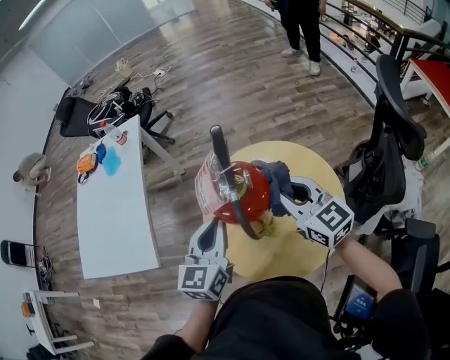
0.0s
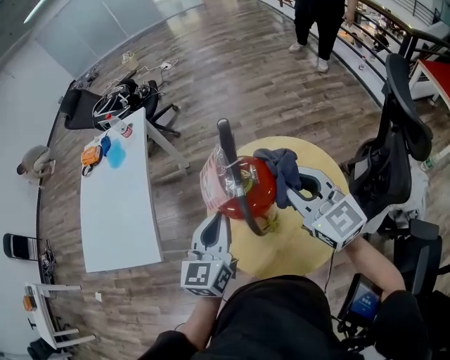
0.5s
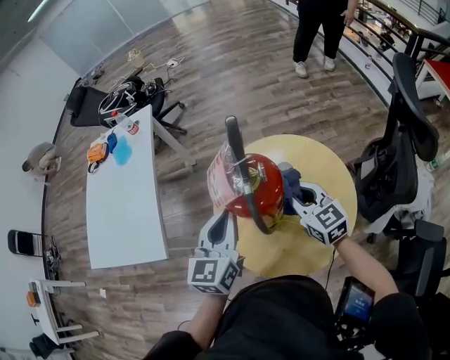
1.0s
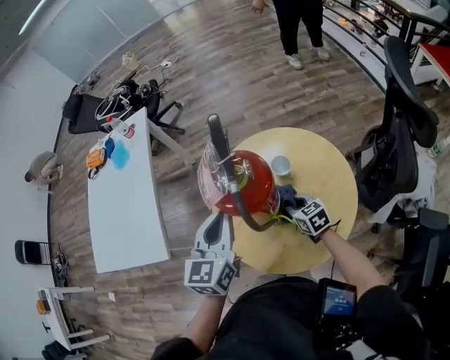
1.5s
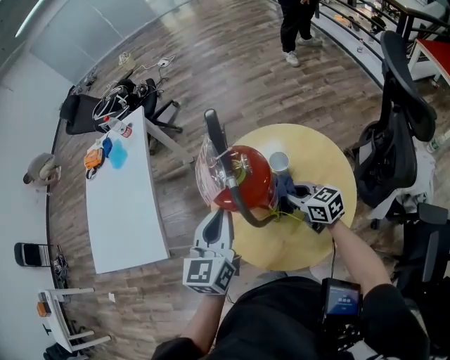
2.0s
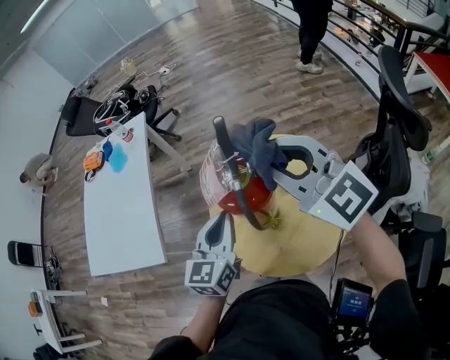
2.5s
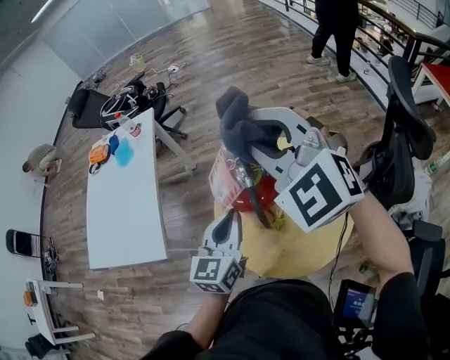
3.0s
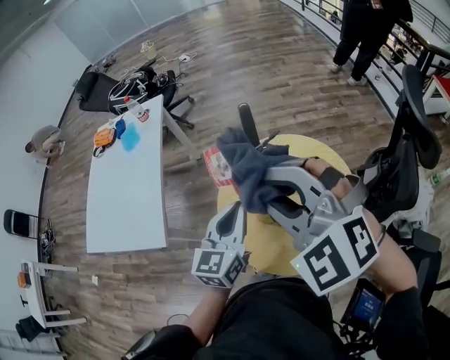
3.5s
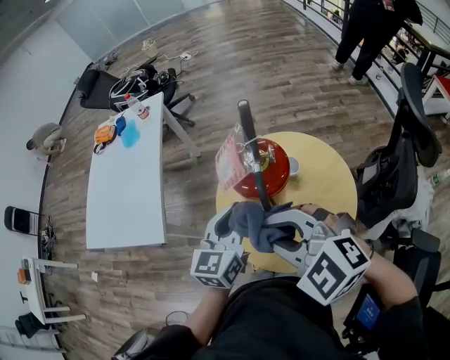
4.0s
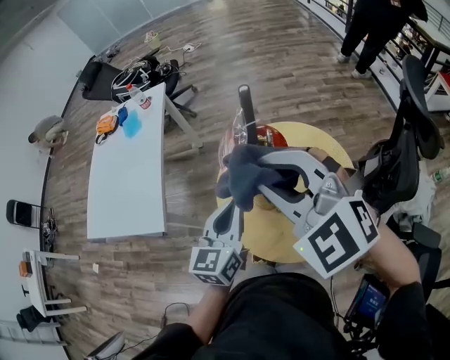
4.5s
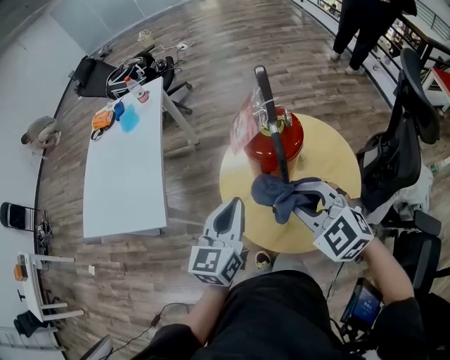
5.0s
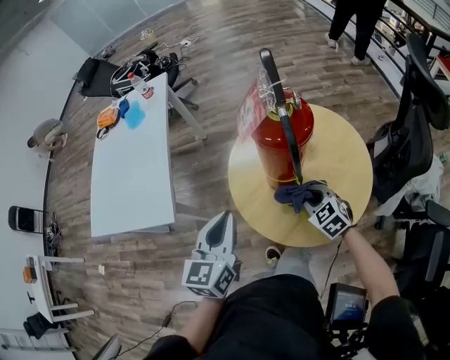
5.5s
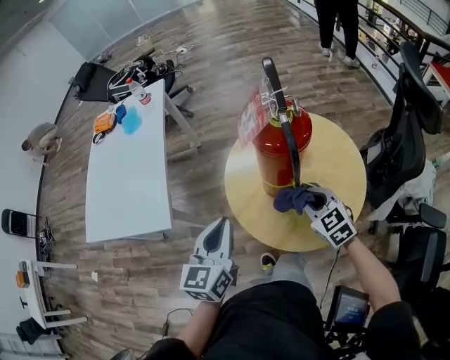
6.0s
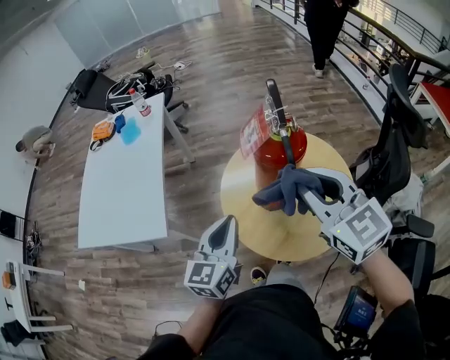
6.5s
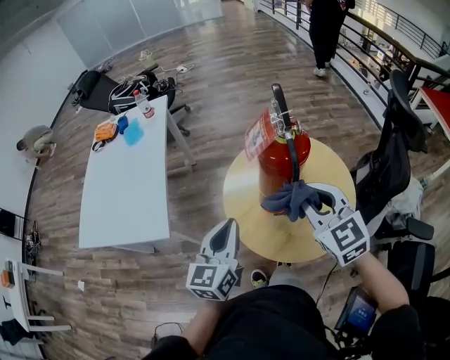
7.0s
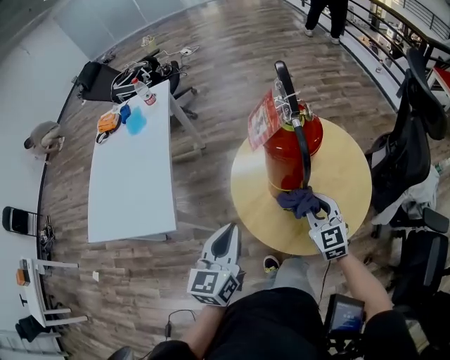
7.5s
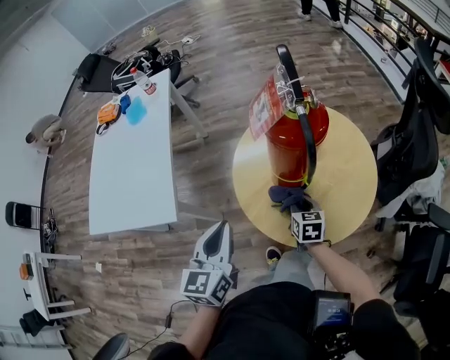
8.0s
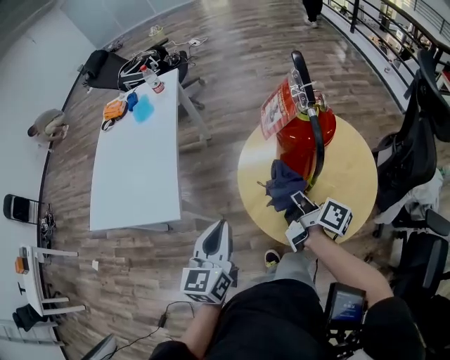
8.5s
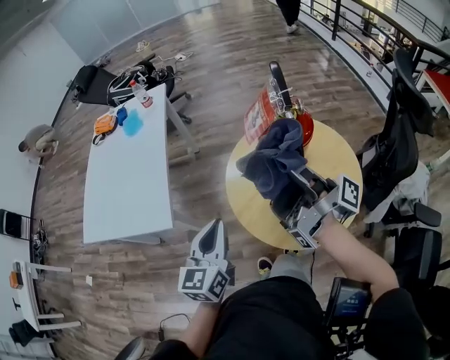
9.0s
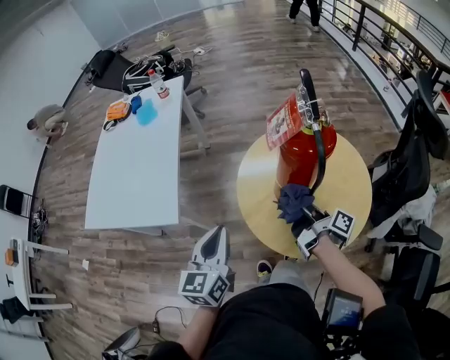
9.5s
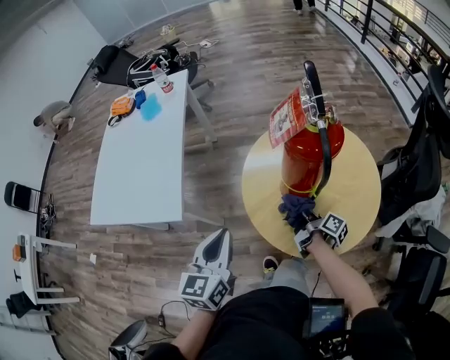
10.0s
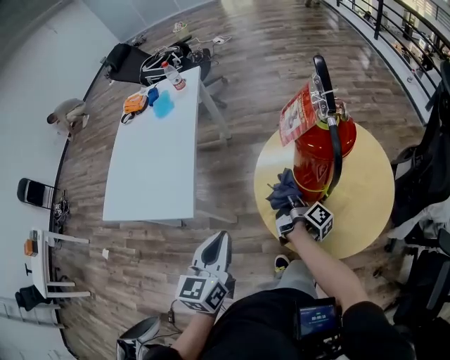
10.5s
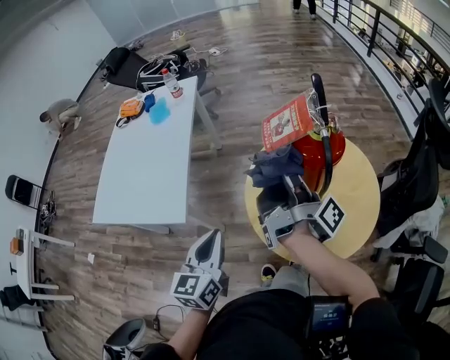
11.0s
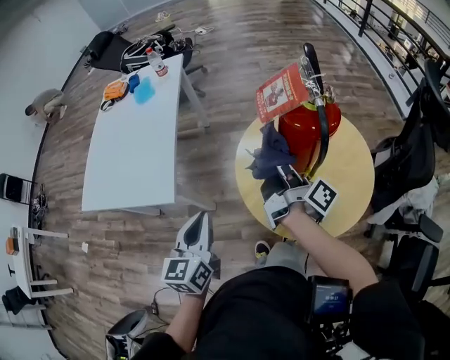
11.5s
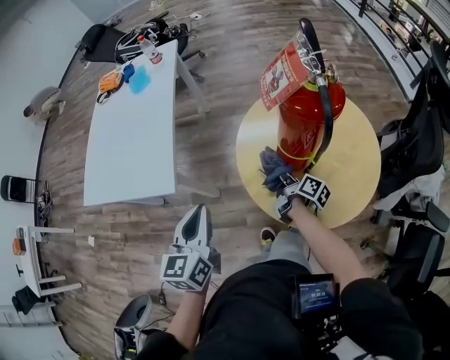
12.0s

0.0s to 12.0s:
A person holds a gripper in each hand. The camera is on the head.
0.0s to 2.0s: The right gripper goes up and down, about 30 cm each way, reversing 2 times, and rotates roughly 20 degrees.
2.0s to 4.0s: The right gripper moves upward, to the left and backward, about 30 cm, and rolls counterclockwise, seen from behind, by roughly 60 degrees.
4.0s to 6.0s: The right gripper moves up and down over approximately 40 cm, changing direction 2 times, and swivels roughly 40 degrees; the left gripper travels to the left and backward by about 15 cm.
6.0s to 8.0s: The right gripper goes upward and returns, some 25 cm each way, and turns by roughly 40 degrees.
8.0s to 10.0s: The right gripper goes upward and returns, about 35 cm each way, and rotates around the line of its fingers by approximately 70 degrees, clockwise from behind.
10.0s to 12.0s: The right gripper goes some 5 cm to the left, and travels upward and back again, about 30 cm each way.

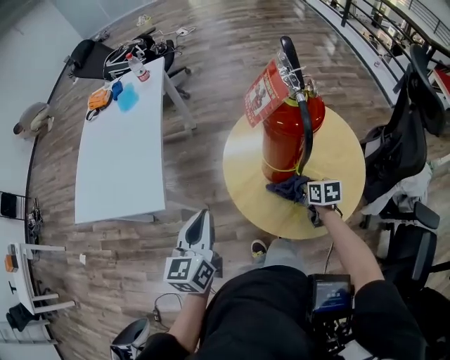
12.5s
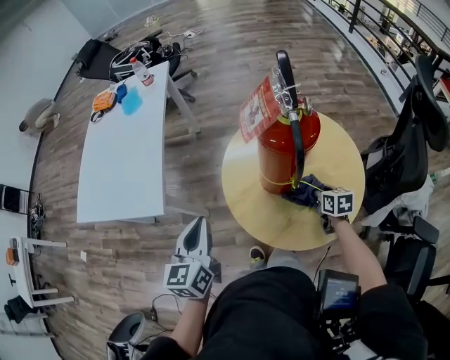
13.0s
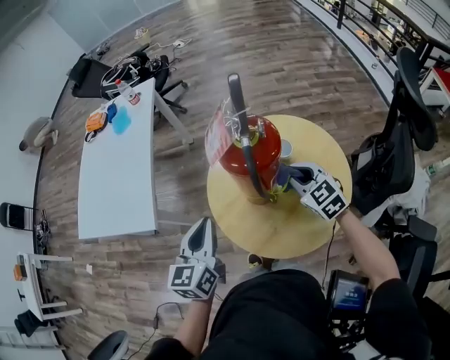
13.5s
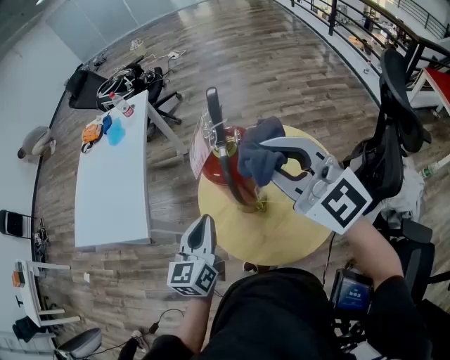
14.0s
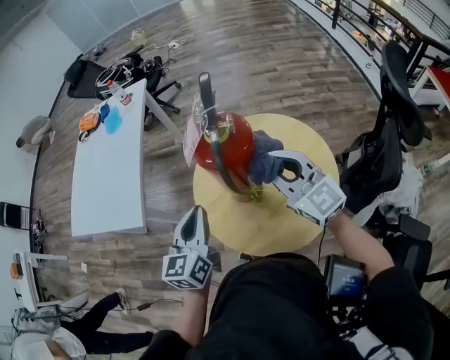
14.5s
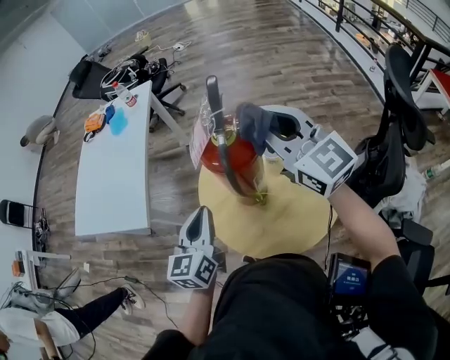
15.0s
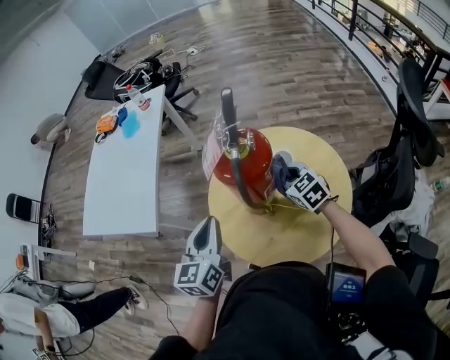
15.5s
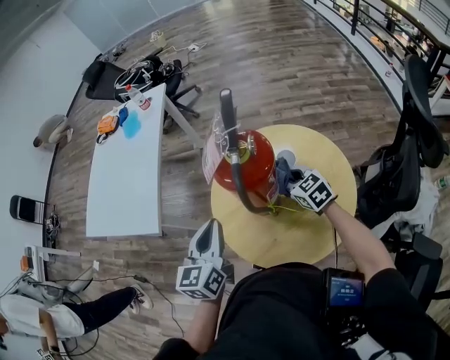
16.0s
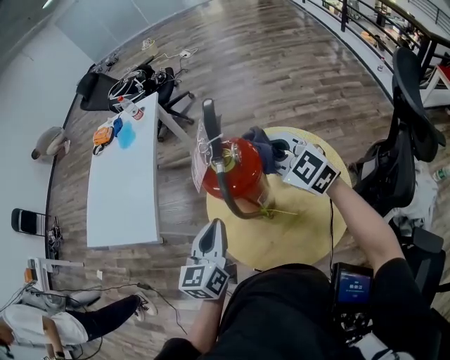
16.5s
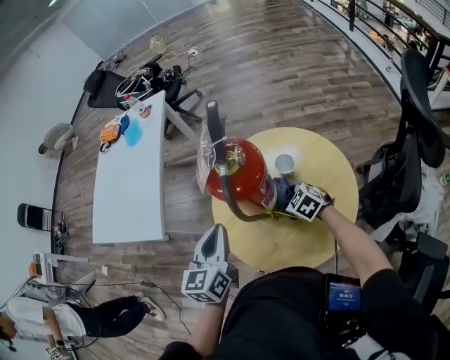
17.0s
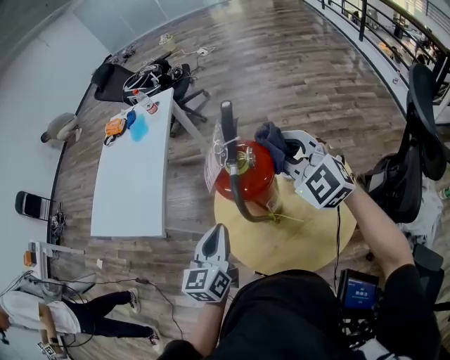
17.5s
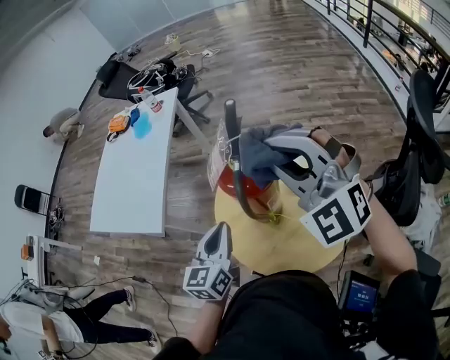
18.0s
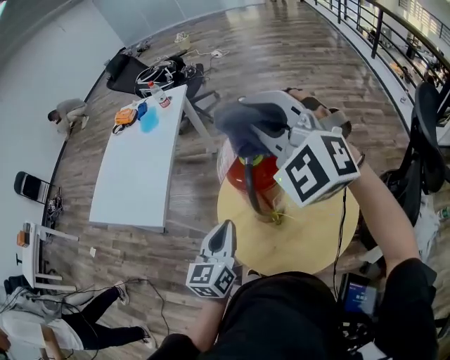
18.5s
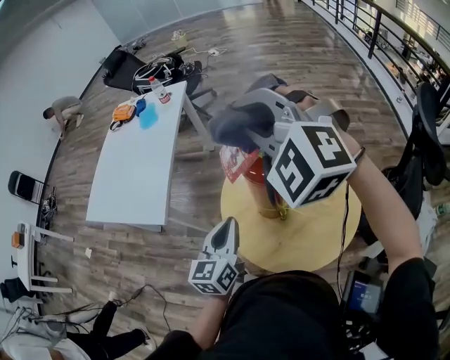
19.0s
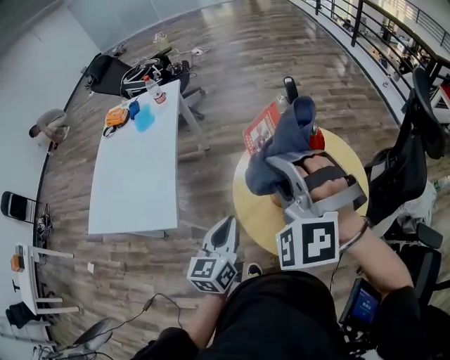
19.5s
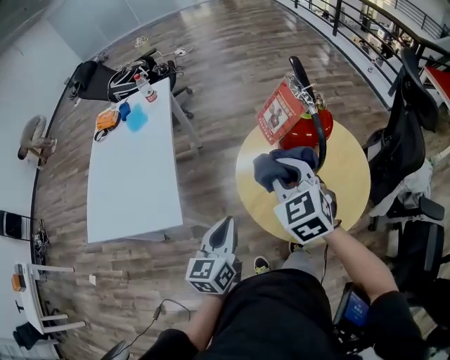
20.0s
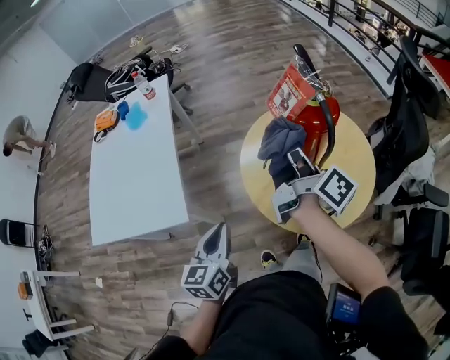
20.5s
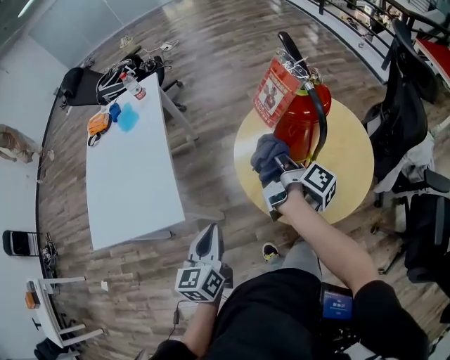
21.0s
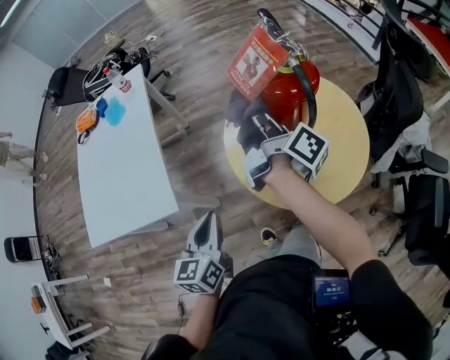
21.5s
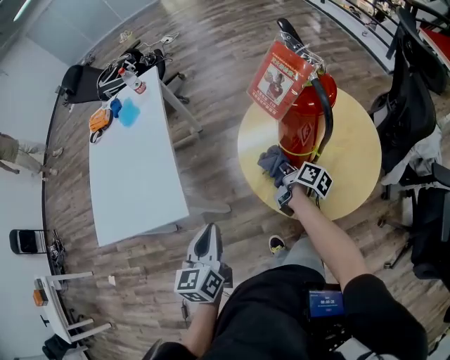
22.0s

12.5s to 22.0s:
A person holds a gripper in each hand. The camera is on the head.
12.5s to 14.5s: The left gripper shifts about 15 cm to the right. The right gripper heads upward, covering roughly 30 cm, and tips its fingers upward by roughly 50 degrees.
14.5s to 16.5s: The right gripper moves up and down over approximately 30 cm, changing direction 2 times, and swivels about 20 degrees.
16.5s to 18.0s: The right gripper shifts approximately 15 cm upward and backward, and swivels about 40 degrees.
18.0s to 20.0s: The left gripper heads to the left, covering some 15 cm. The right gripper heads downward and to the left, covering some 20 cm, and turns by roughly 50 degrees.
20.0s to 22.0s: The right gripper moves up and down over some 30 cm, changing direction 2 times, and twists about 100 degrees clockwise, seen from behind; the left gripper heads to the left, covering roughly 10 cm.

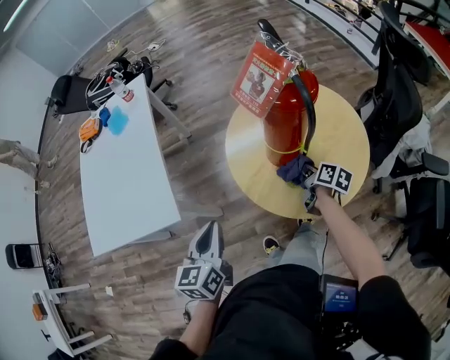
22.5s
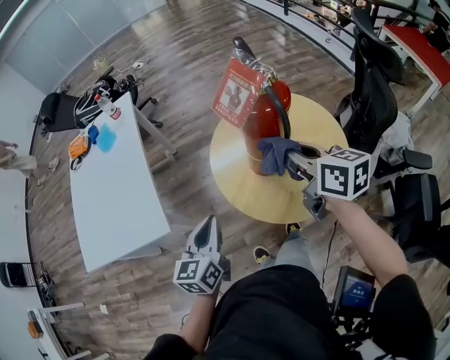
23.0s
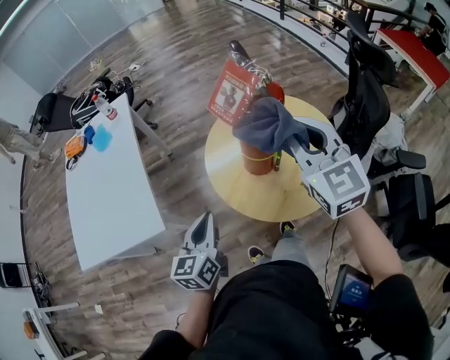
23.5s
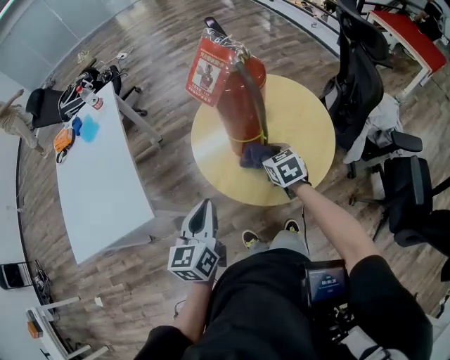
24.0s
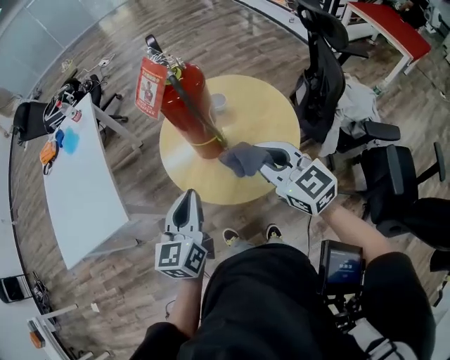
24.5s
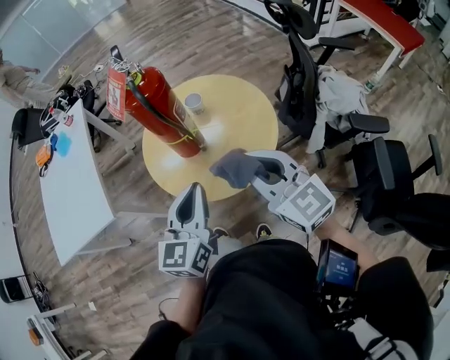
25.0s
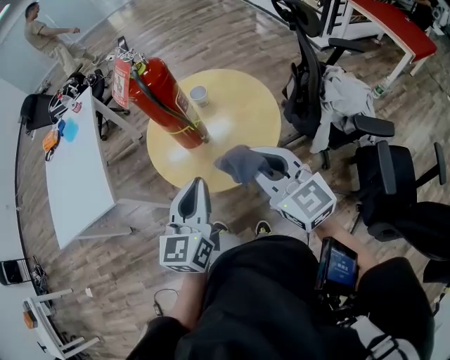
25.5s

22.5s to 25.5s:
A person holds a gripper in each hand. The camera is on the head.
22.5s to 24.0s: The left gripper is displaced to the right by roughly 10 cm, while the right gripper moves approximately 35 cm upward and comes back, and rotates around the line of its fingers by some 50 degrees, counterclockwise from behind.
24.0s to 25.5s: The left gripper shifts roughly 20 cm to the right, while the right gripper moves upward, backward and to the right, some 35 cm, and angles its fingers upward, by roughly 40 degrees.

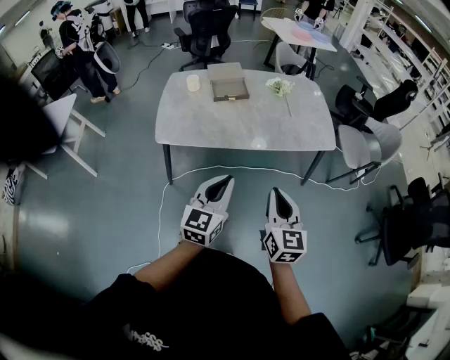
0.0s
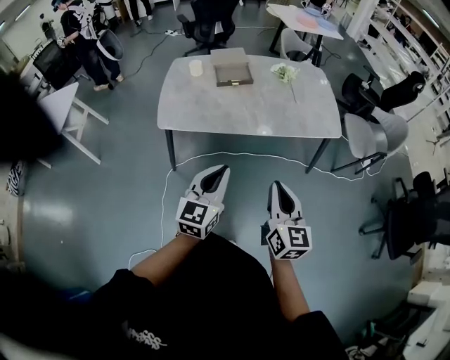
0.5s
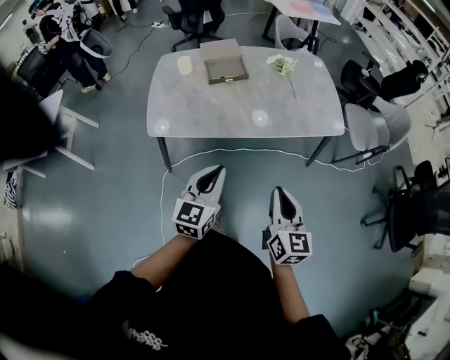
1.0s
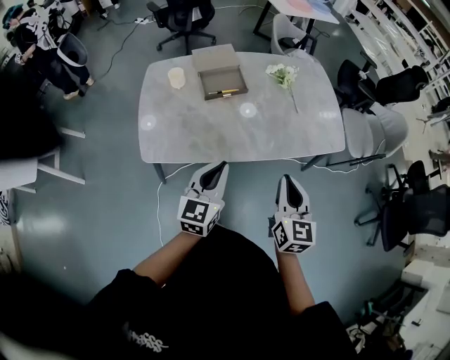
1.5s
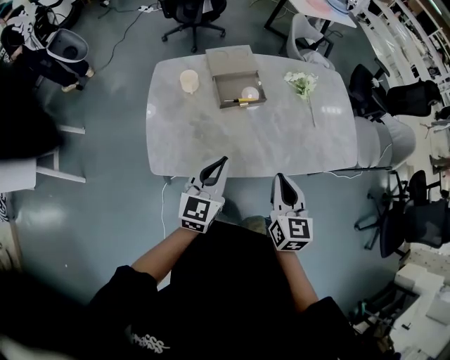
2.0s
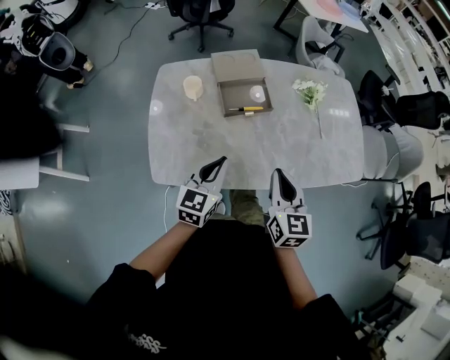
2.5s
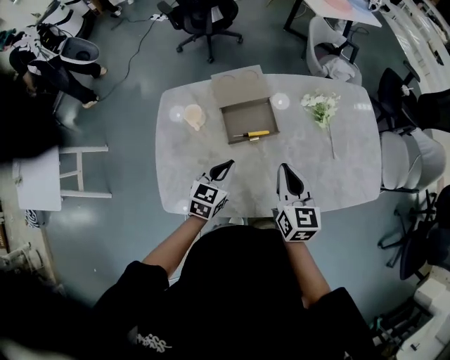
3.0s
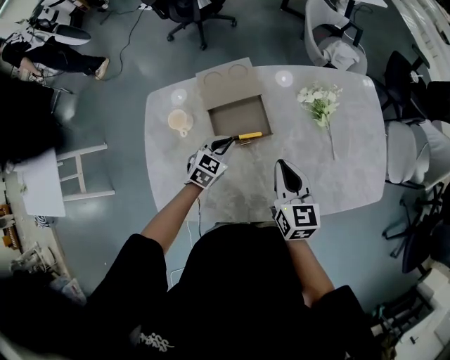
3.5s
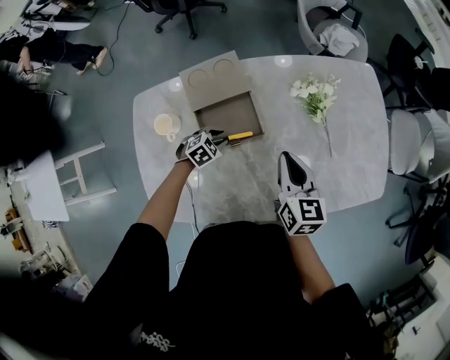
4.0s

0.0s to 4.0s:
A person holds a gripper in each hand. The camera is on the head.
0.0s to 2.0s: The two grippers go some 40 cm forward and to the left.
2.0s to 4.0s: The left gripper travels forward and downward by about 50 cm, points its fingers roughly 50 degrees further downward, and opens its fingers; the right gripper goes about 35 cm forward.
